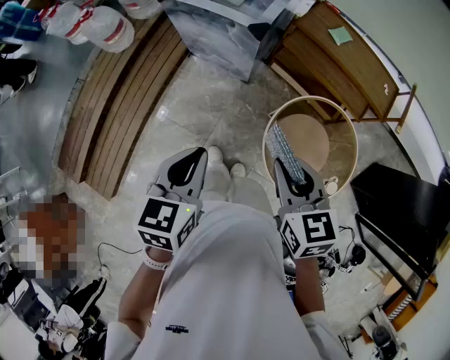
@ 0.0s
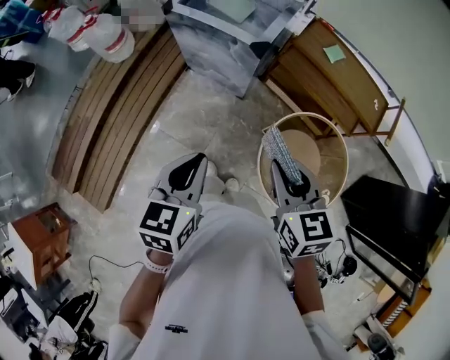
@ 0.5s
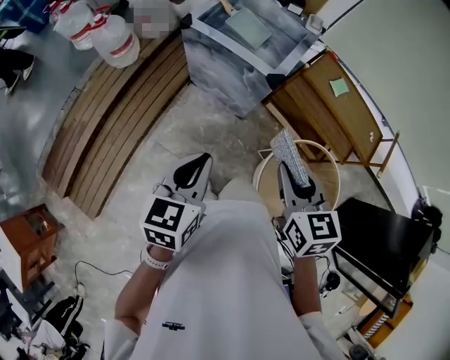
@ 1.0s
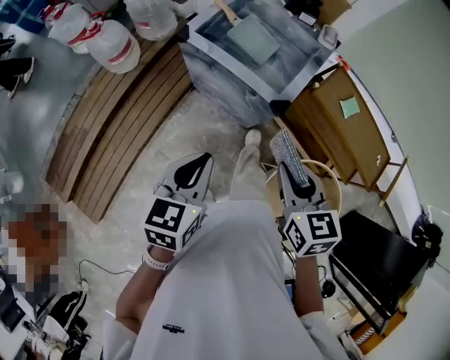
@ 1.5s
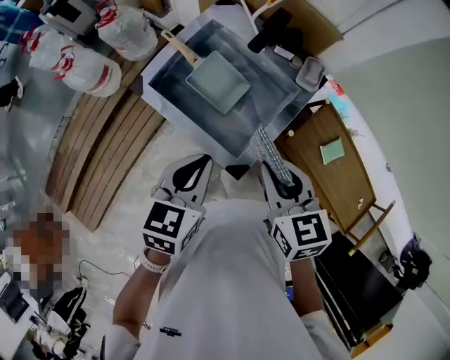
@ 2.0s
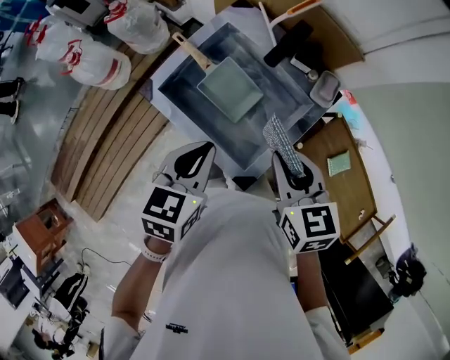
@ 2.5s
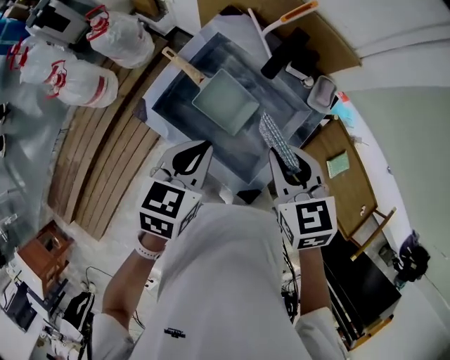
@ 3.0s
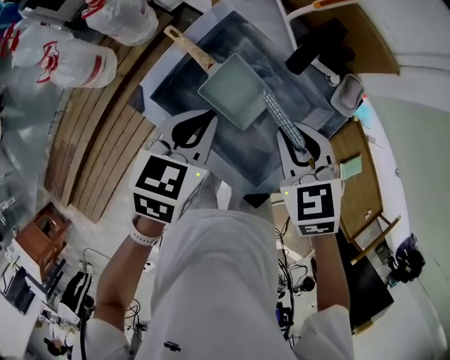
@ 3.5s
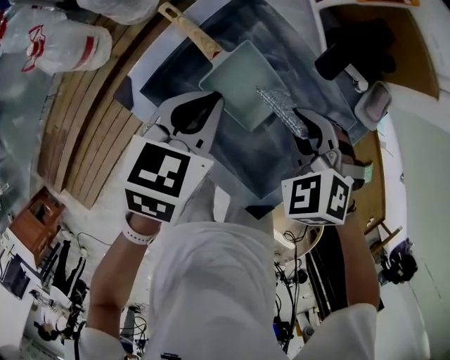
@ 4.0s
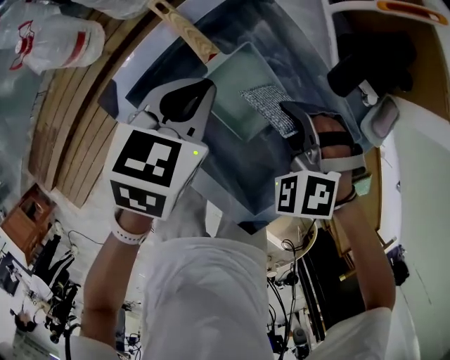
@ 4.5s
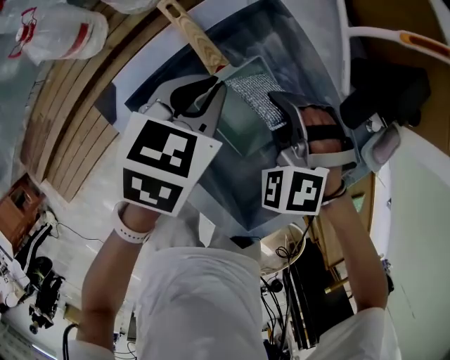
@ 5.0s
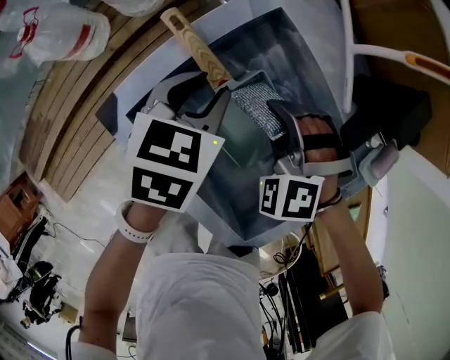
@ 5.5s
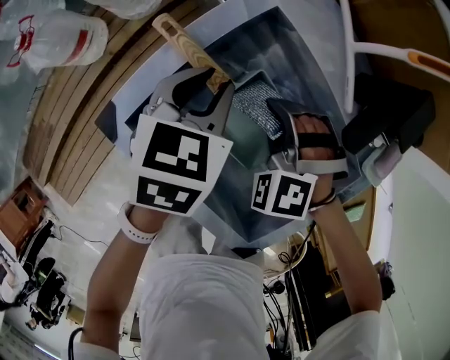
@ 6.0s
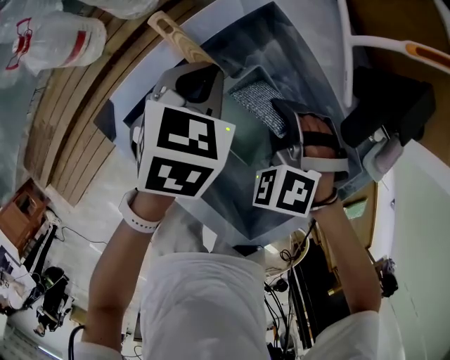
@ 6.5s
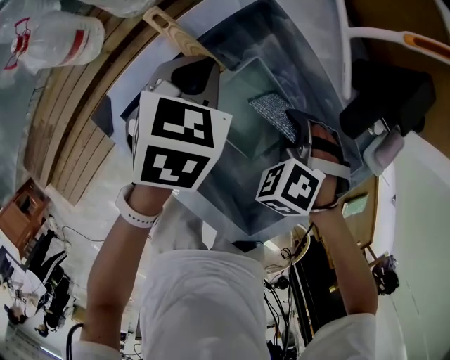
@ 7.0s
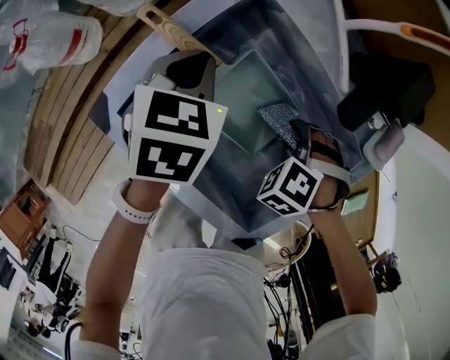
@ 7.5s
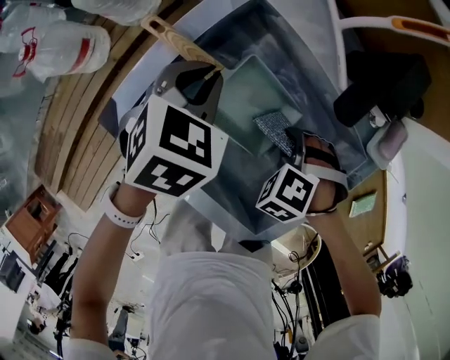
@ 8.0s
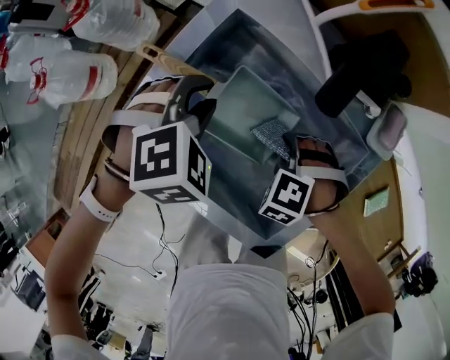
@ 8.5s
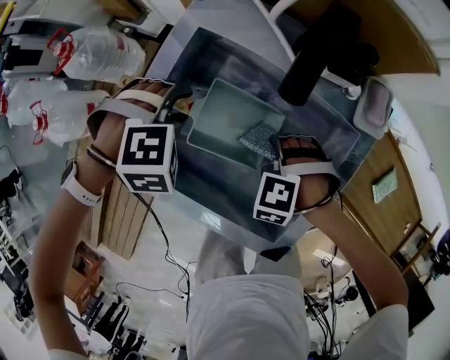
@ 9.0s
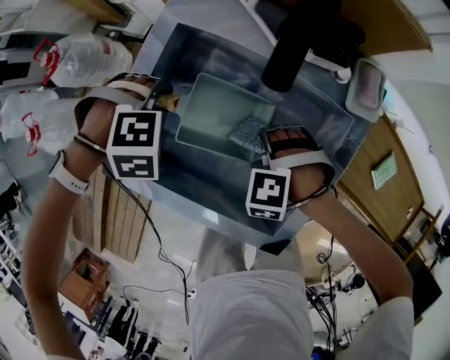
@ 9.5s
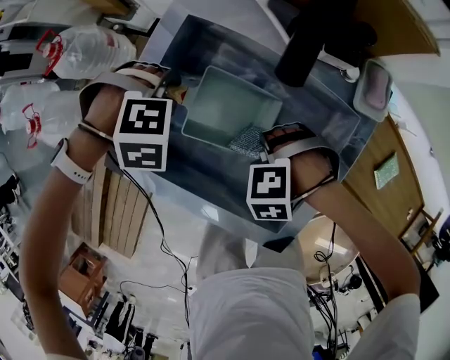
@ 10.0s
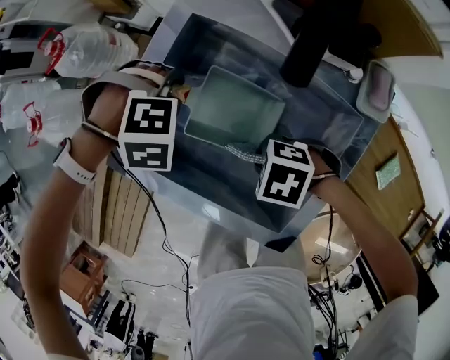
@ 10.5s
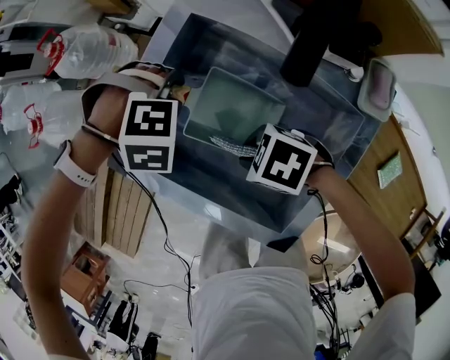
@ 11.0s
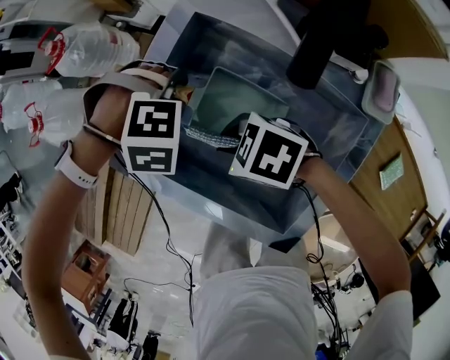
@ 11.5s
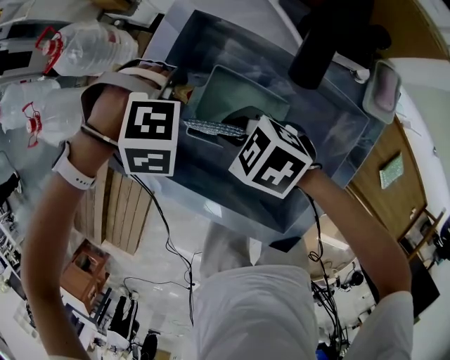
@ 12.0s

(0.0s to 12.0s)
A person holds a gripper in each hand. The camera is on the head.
0.0s - 2.0s: The left gripper changes place by about 50 cm.
2.0s - 4.0s: The left gripper shifts by approximately 25 cm.
4.0s - 6.0s: The left gripper moves some 15 cm, and opens up.
6.0s - 8.0s: The left gripper turns by some 20 degrees, and closes up.
8.0s - 10.0s: The left gripper twists roughly 80 degrees clockwise, seen from behind, and opens.

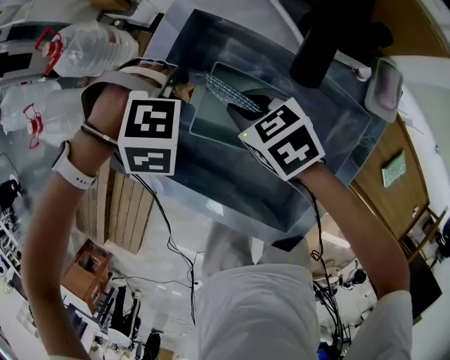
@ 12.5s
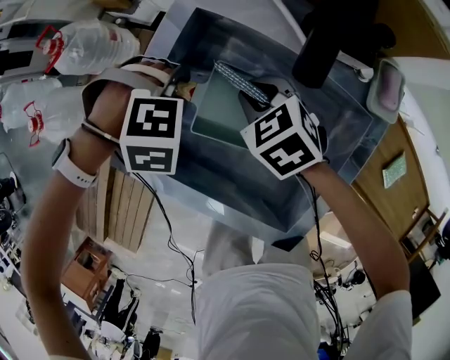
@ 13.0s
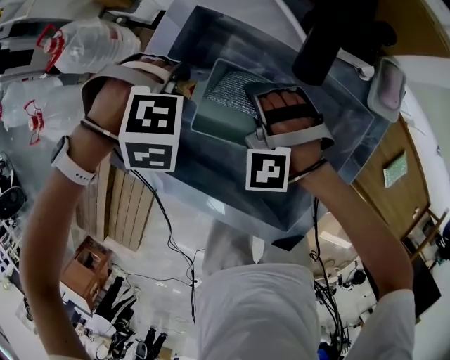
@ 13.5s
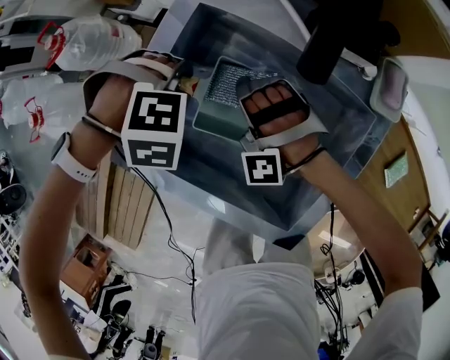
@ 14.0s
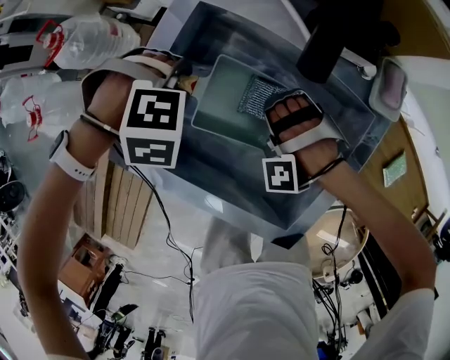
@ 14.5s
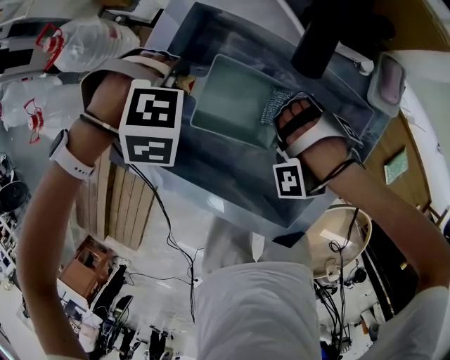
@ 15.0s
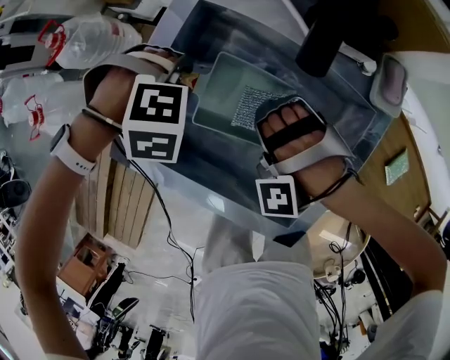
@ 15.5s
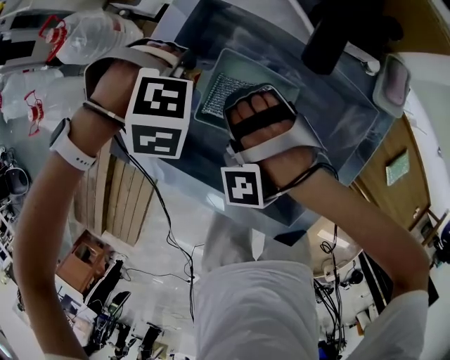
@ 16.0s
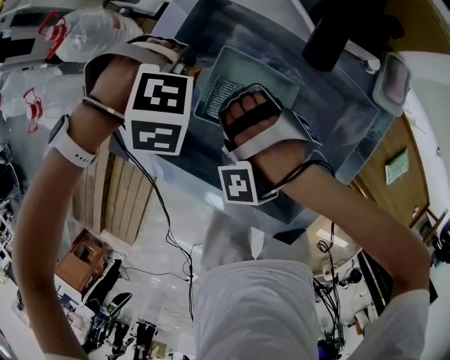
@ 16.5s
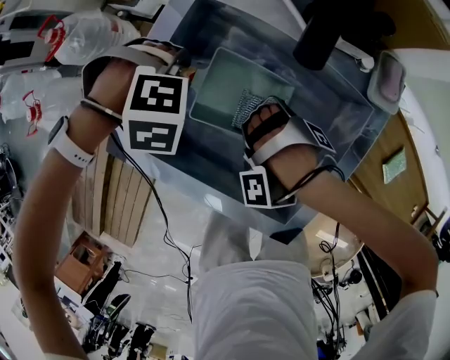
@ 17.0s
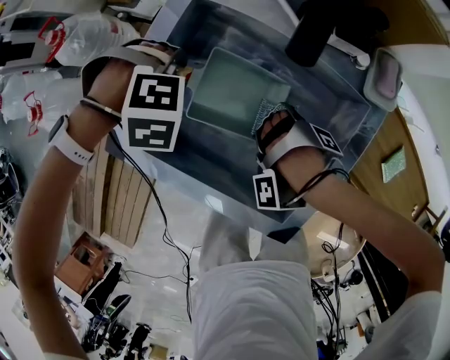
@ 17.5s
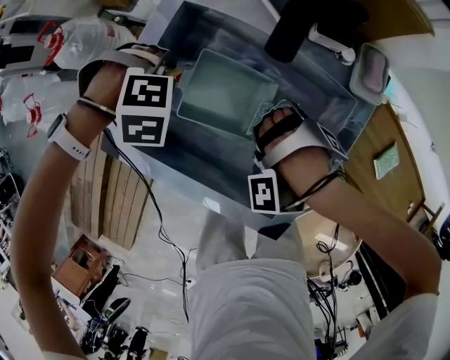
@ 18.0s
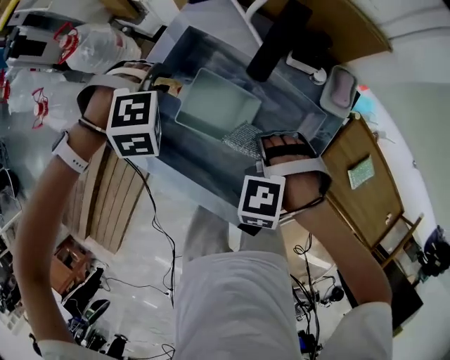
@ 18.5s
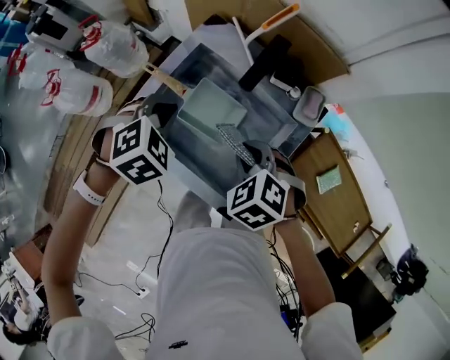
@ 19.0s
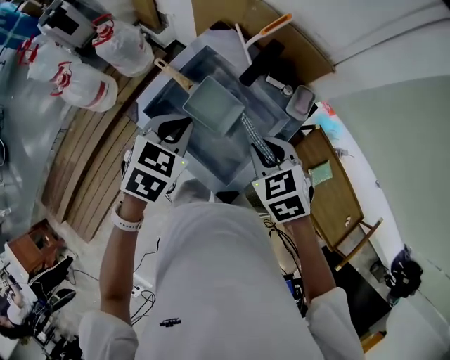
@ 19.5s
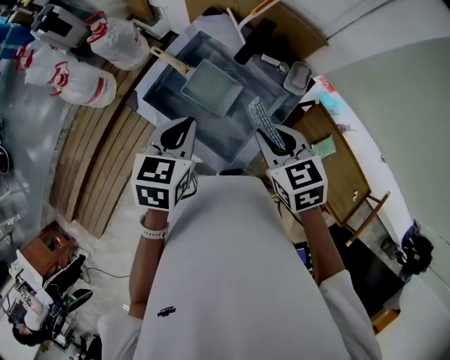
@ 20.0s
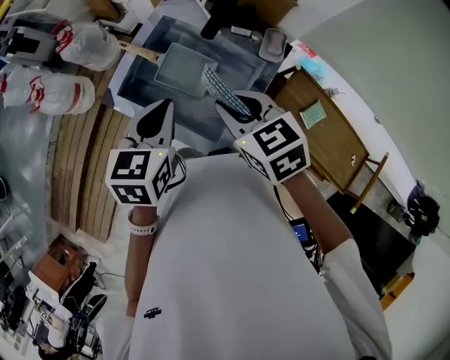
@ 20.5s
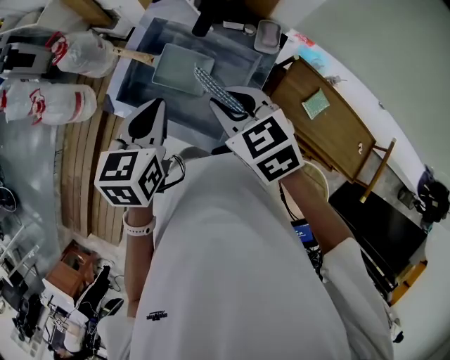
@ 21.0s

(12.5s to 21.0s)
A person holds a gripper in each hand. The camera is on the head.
16.5s - 19.0s: The left gripper shifts some 20 cm upward, twists about 50 degrees counterclockwise, seen from behind, and closes.
19.0s - 21.0s: The left gripper changes place by approximately 15 cm, and twists approximately 50 degrees counterclockwise, seen from behind.

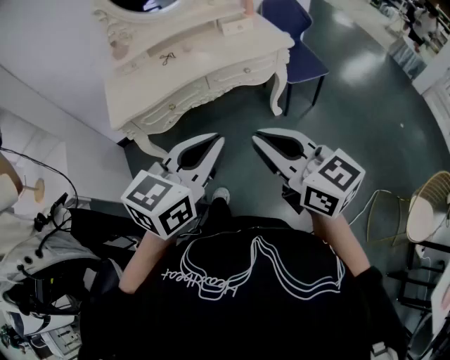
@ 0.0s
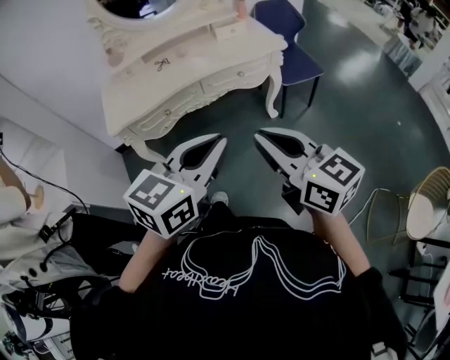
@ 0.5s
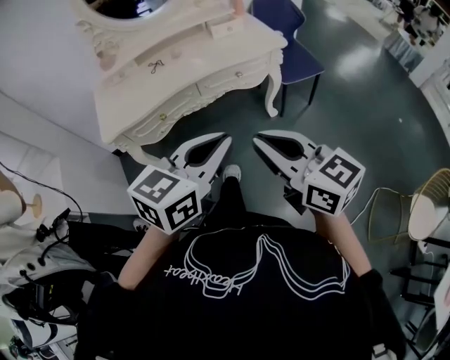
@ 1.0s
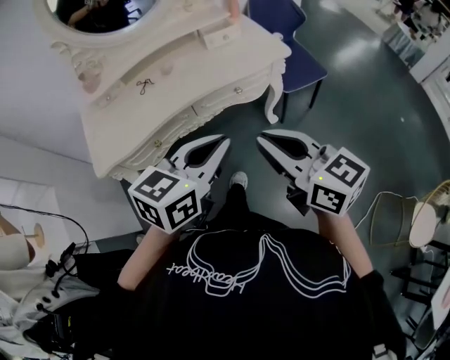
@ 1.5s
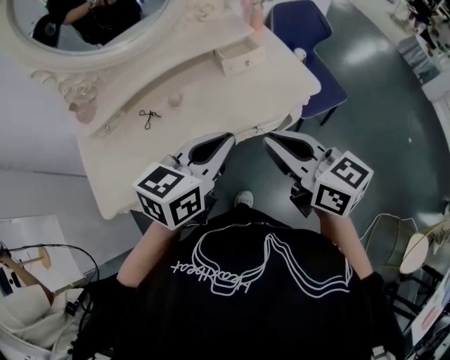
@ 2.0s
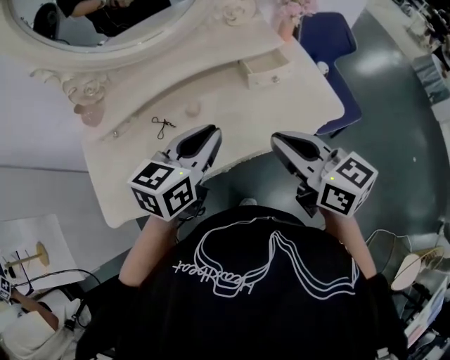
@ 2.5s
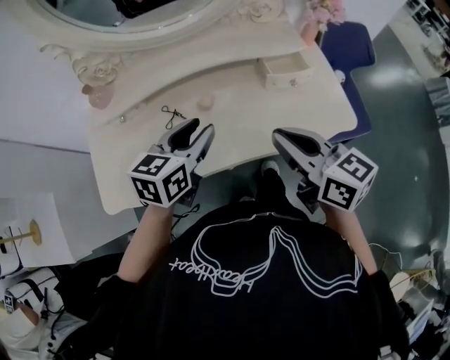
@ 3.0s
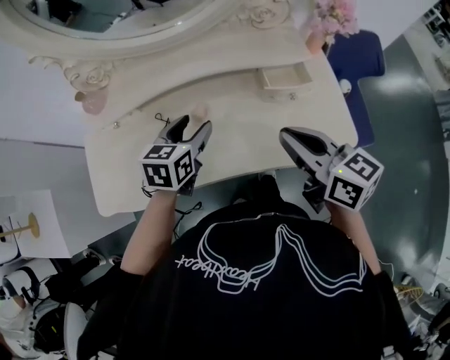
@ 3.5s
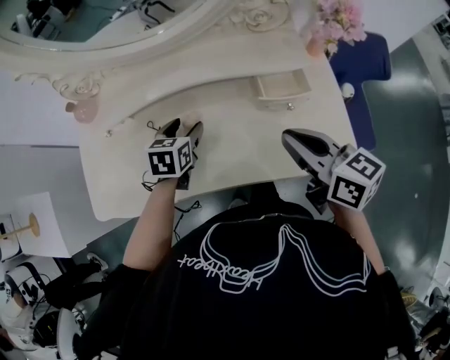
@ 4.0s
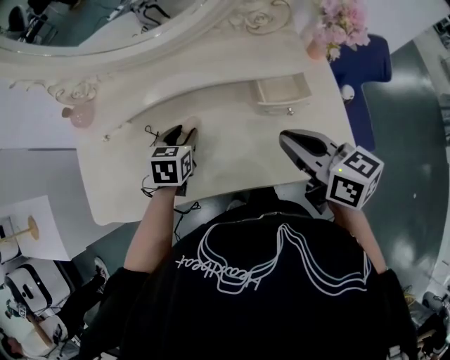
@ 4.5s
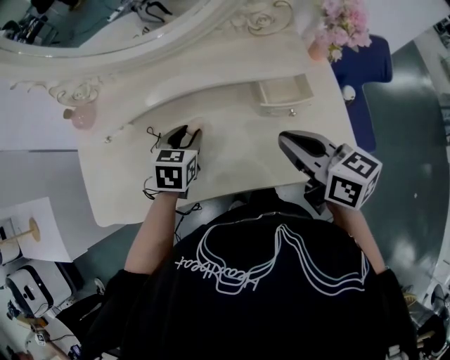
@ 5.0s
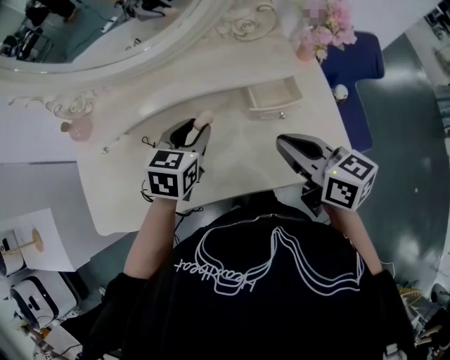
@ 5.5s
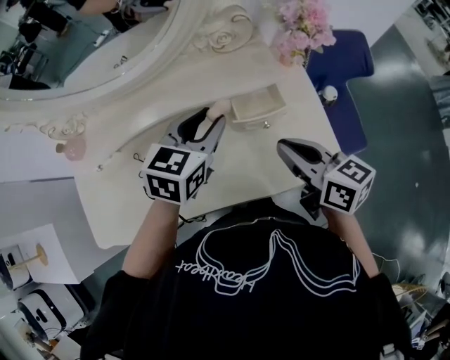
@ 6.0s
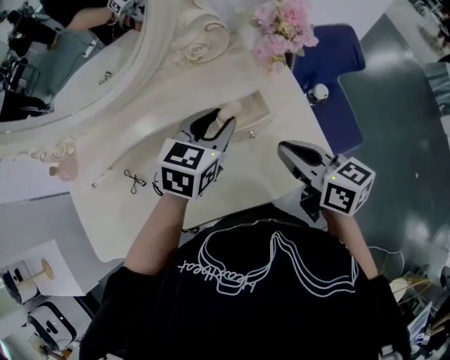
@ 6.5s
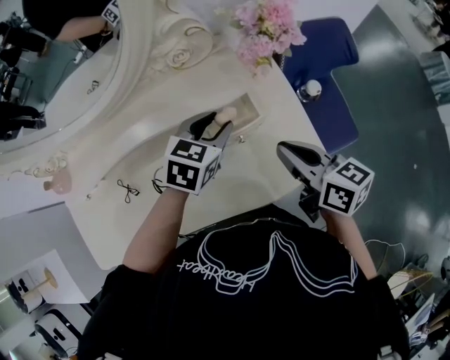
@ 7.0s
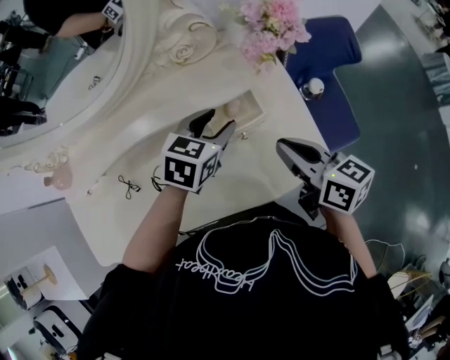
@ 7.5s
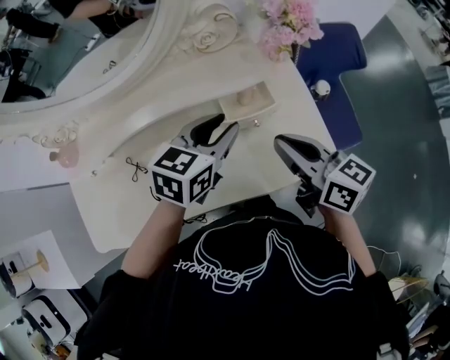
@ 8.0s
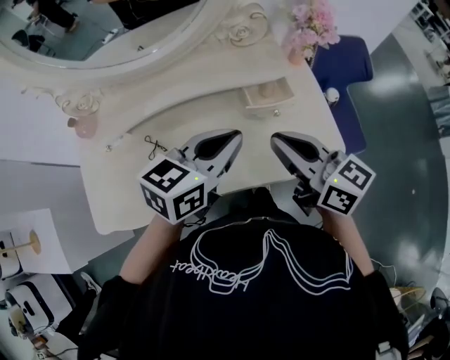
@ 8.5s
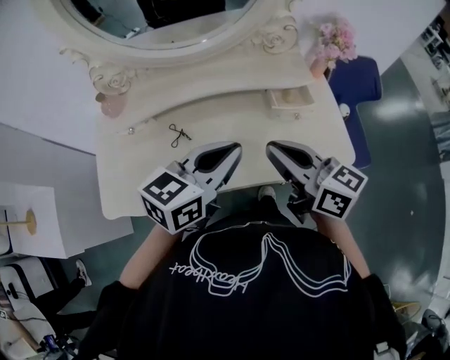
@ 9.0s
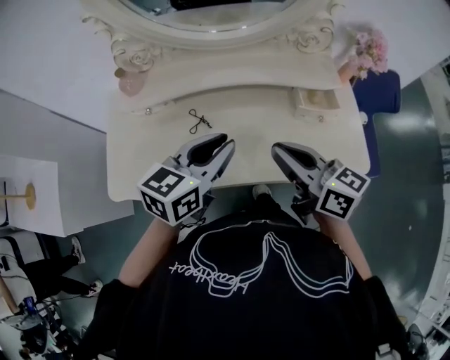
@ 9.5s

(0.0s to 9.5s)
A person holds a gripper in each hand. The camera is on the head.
0.0s - 2.0s: Both grippers are carried forward, roughly 40 cm.
2.0s - 4.0s: The right gripper changes place by roughly 25 cm. Meanwhile the left gripper moves some 35 cm, turns by roughly 50 degrees, and opens.
4.0s - 5.5s: The left gripper heads upward and to the right, covering approximately 10 cm, and closes.
5.5s - 7.5s: The left gripper moves to the right, about 20 cm. Meanwhile the right gripper moves to the right, roughly 10 cm.
7.5s - 9.5s: The right gripper moves to the left and backward, about 25 cm, and swivels roughly 20 degrees. The left gripper moves to the left, backward and upward, about 35 cm, turns by roughly 30 degrees, and closes.
